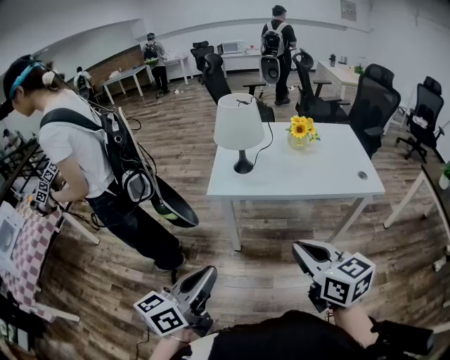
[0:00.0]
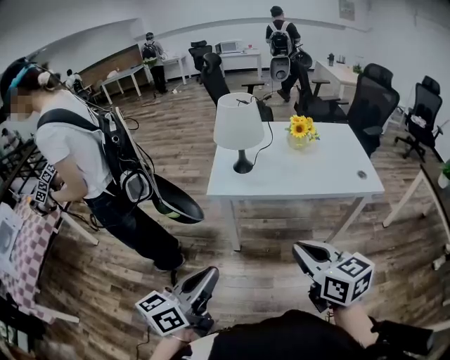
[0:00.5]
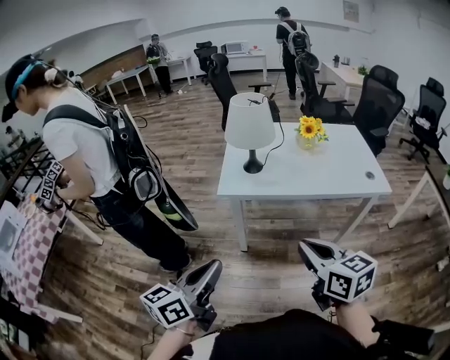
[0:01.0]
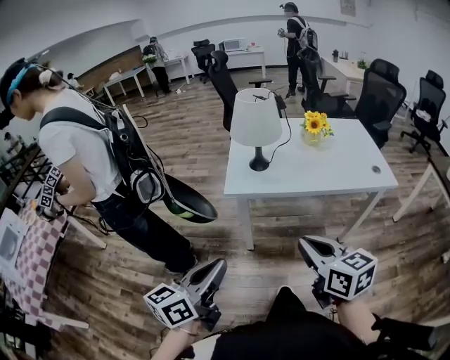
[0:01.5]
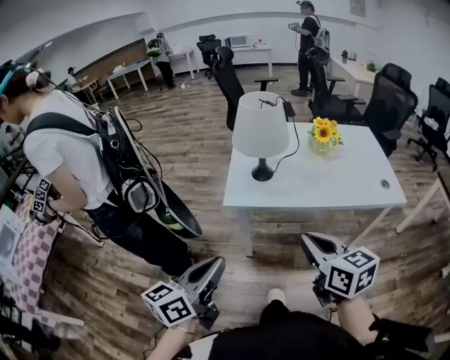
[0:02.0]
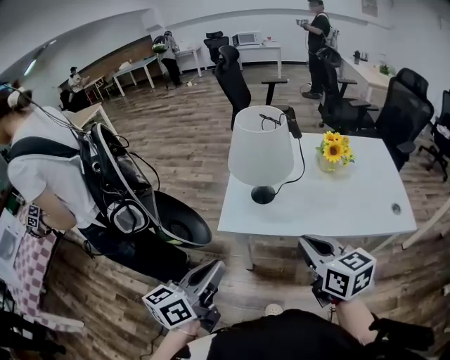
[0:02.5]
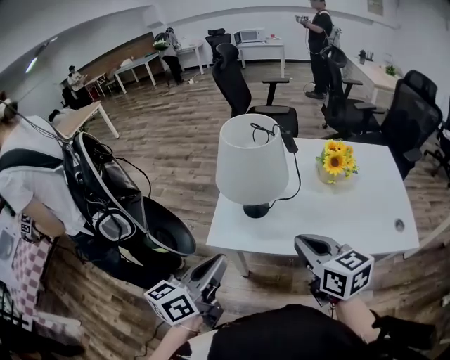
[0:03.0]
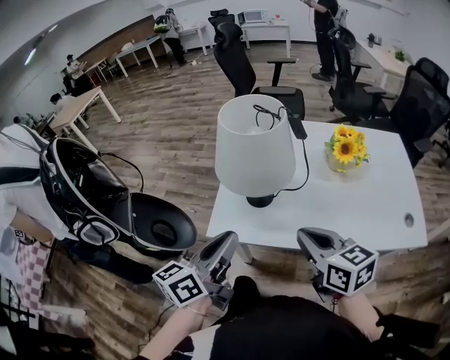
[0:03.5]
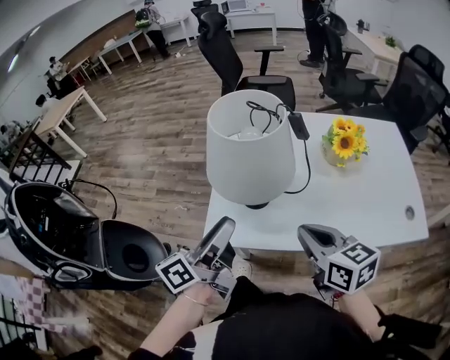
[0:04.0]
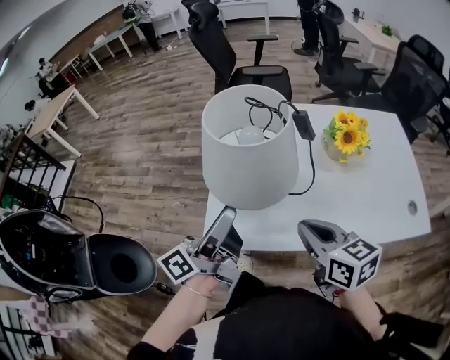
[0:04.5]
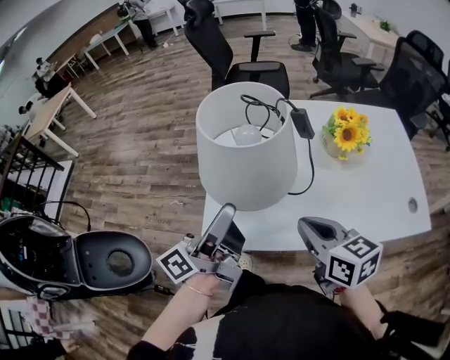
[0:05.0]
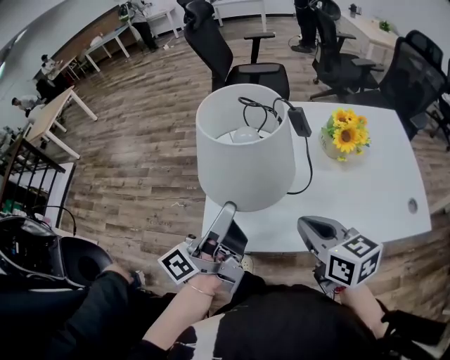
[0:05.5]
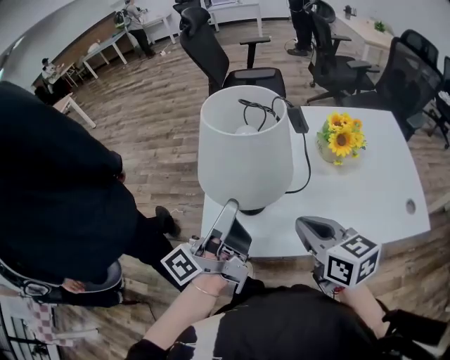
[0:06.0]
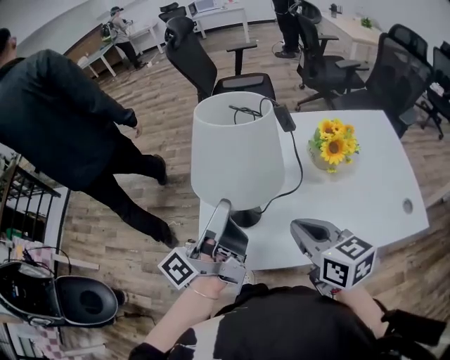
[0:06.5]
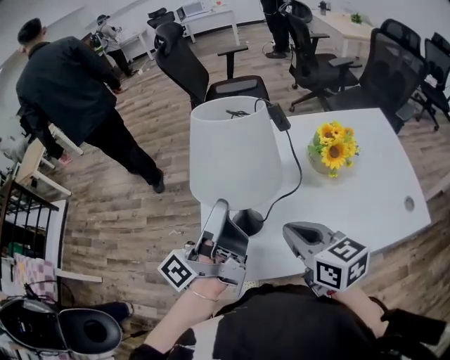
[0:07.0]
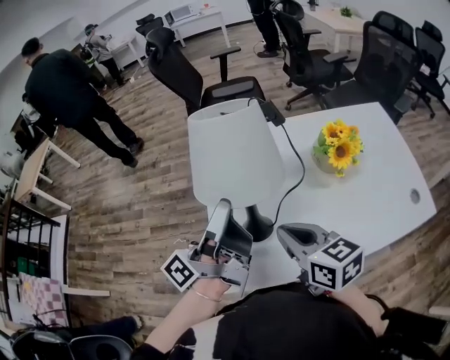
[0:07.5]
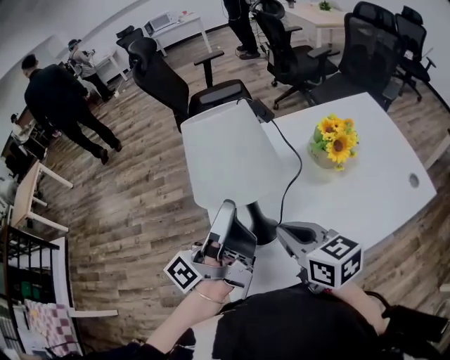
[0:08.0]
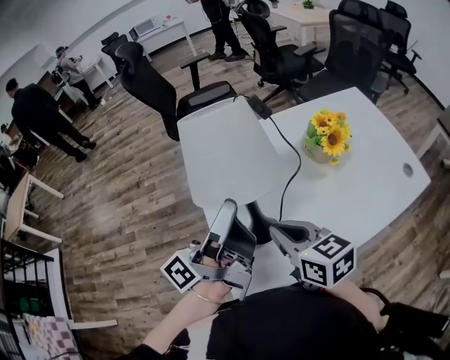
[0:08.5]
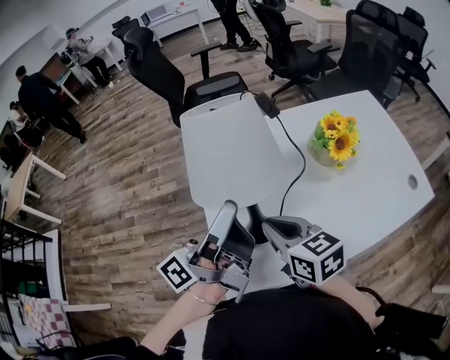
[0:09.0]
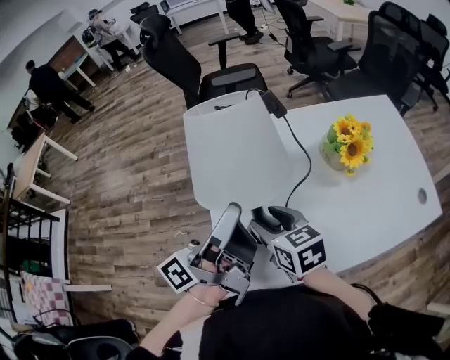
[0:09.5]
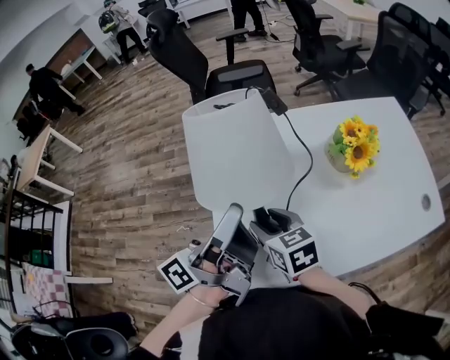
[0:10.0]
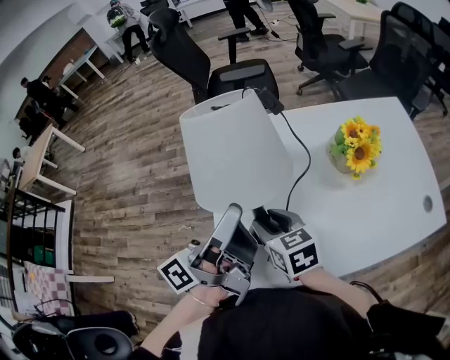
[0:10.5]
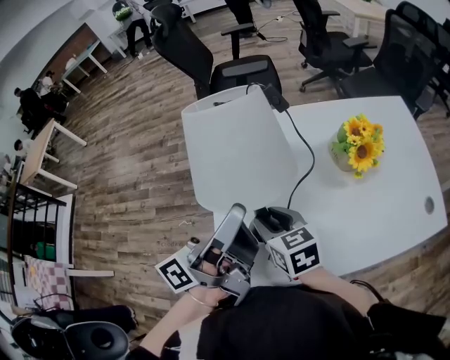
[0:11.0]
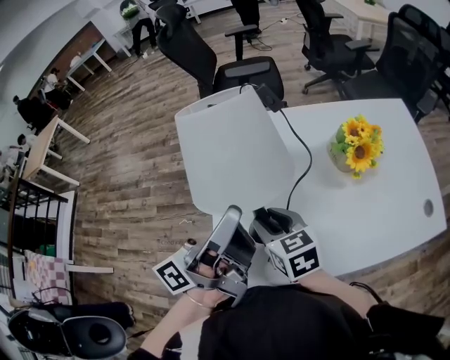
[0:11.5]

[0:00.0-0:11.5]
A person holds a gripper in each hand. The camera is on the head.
0:00.0 to 0:02.0: The grippers both shift forward by some 10 cm.
0:02.0 to 0:04.0: The grippers both shift forward by some 30 cm. The left gripper changes its angle by approximately 30 degrees, and opens up.
0:04.0 to 0:06.0: The left gripper travels forward by roughly 5 cm, and closes its fingers.
0:06.0 to 0:07.5: The left gripper moves forward, approximately 10 cm; the right gripper heads forward and to the left, covering approximately 10 cm.
0:07.5 to 0:09.5: The right gripper heads forward, to the left and downward, covering approximately 10 cm, and opens.
0:09.5 to 0:11.5: The grippers move only a little.

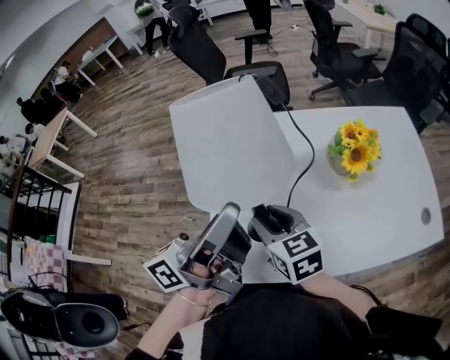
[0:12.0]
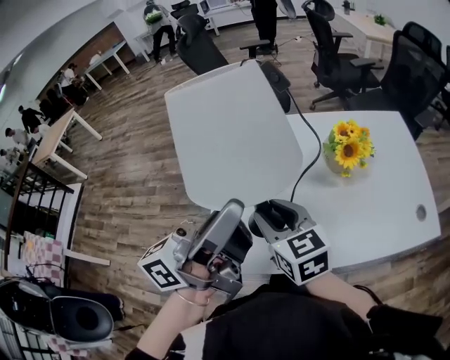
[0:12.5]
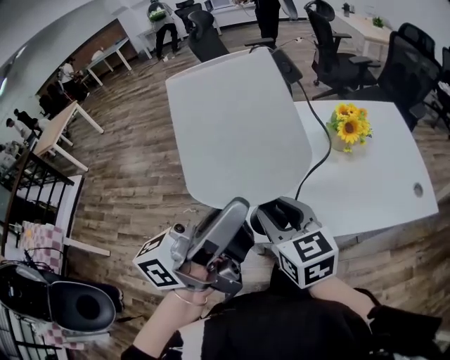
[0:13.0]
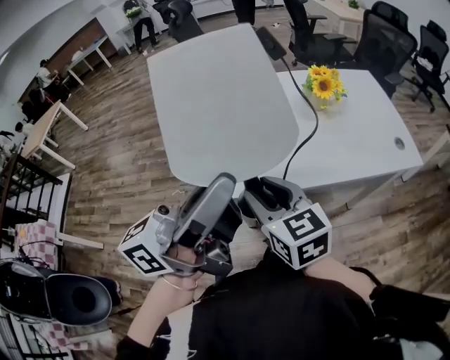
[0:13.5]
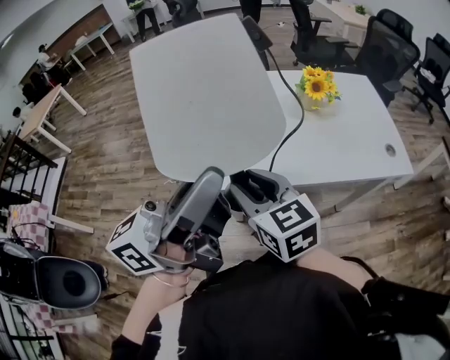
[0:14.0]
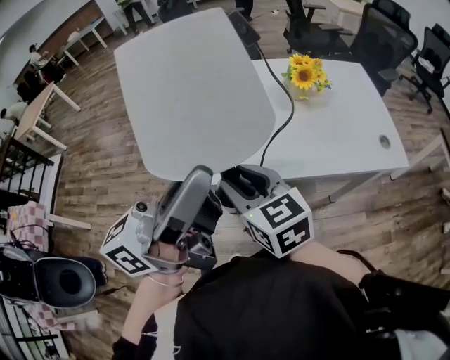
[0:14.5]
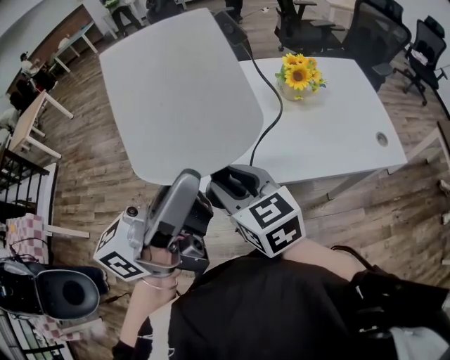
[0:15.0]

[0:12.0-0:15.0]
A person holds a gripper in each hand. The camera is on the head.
0:12.0 to 0:13.5: Both grippers travel together backward, about 25 cm.
0:13.5 to 0:15.0: The left gripper shifts about 5 cm to the right.

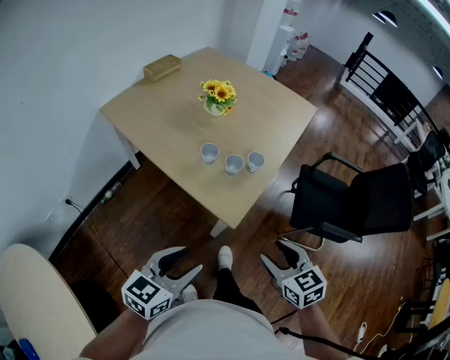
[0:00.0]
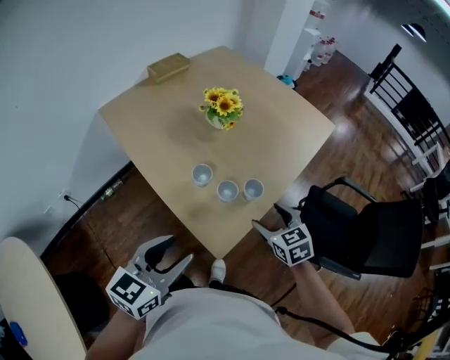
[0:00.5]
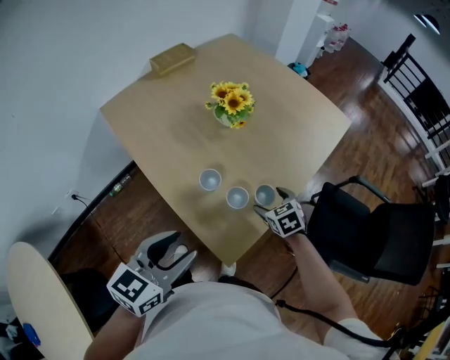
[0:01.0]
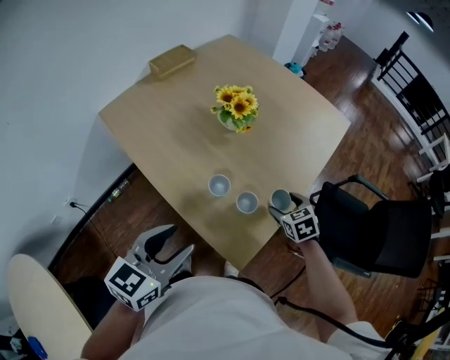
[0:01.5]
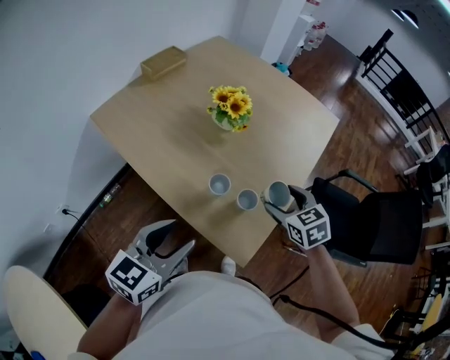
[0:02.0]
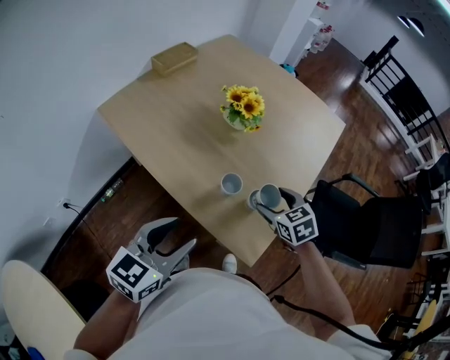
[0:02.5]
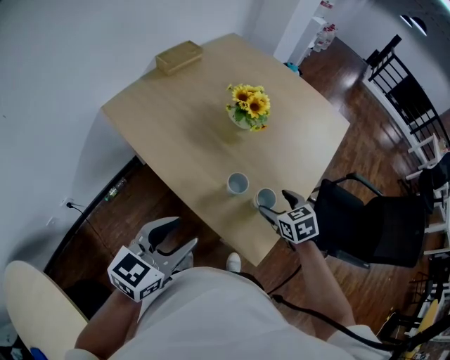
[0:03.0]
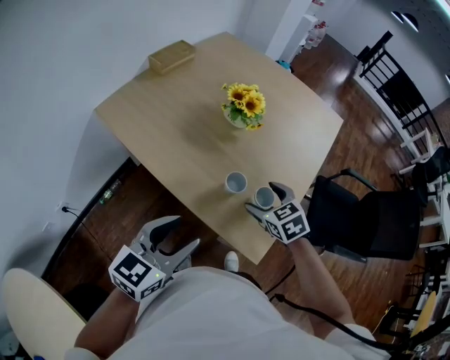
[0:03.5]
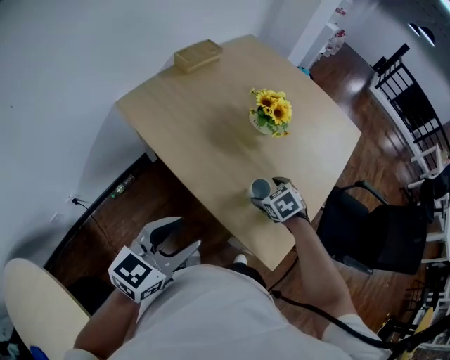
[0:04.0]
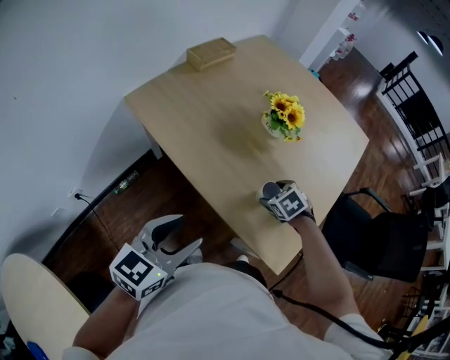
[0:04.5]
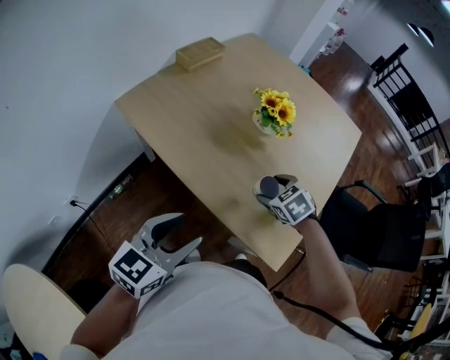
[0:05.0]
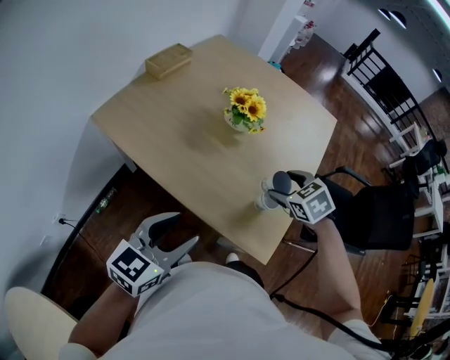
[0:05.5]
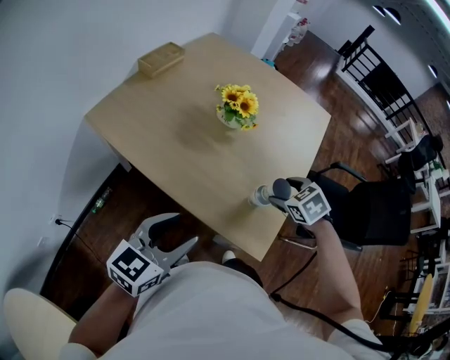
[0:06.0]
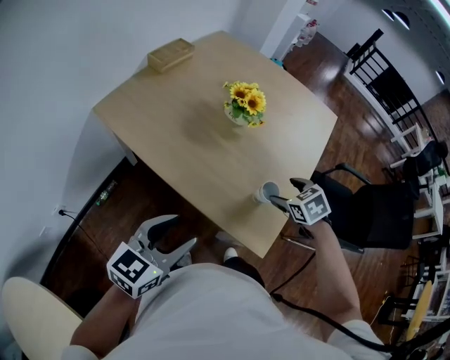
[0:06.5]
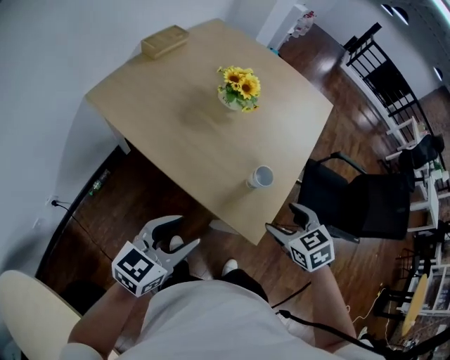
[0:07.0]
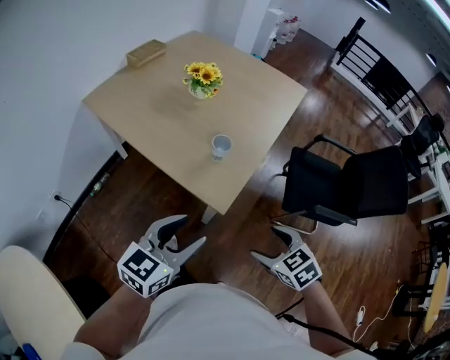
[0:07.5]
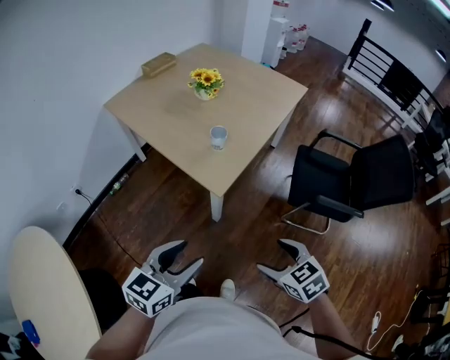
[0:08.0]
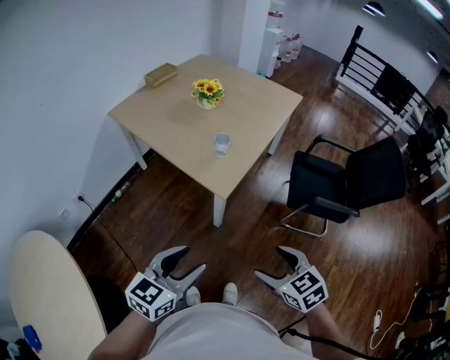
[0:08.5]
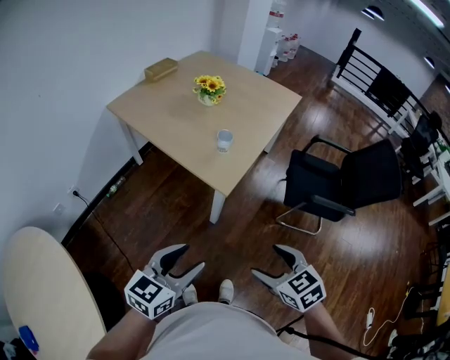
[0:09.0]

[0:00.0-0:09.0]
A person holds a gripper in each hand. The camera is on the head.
0:00.0 to 0:02.0: Both grippers travel together forward, approximately 30 cm.
0:02.0 to 0:04.5: The right gripper heads to the left and downward, covering approximately 20 cm, and changes its angle by about 30 degrees. The left gripper shifts roughly 15 cm to the left.
0:04.5 to 0:07.0: The left gripper heads to the right, covering approximately 10 cm. The right gripper goes some 25 cm backward, upward and to the right, and changes its angle by about 20 degrees.
0:07.0 to 0:09.0: The right gripper travels backward by roughly 40 cm, while the left gripper moves backward and to the right, roughly 35 cm.

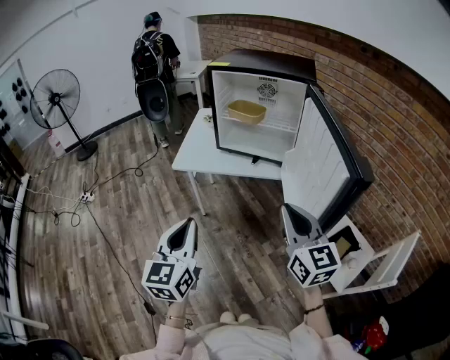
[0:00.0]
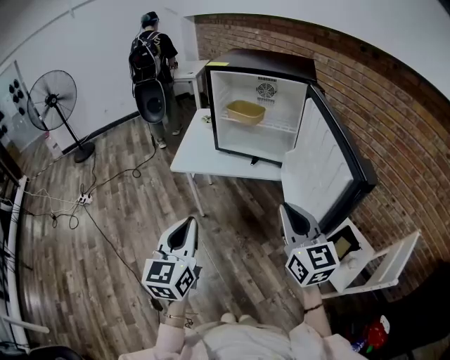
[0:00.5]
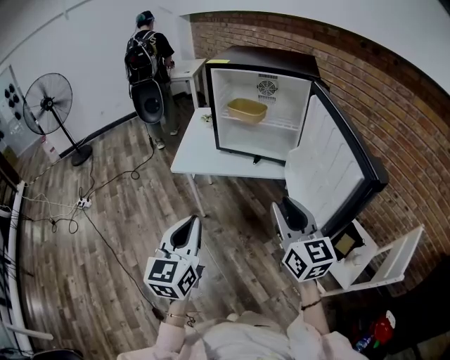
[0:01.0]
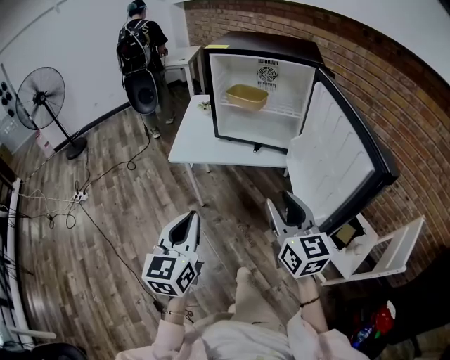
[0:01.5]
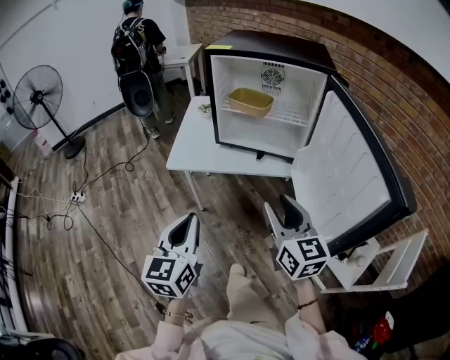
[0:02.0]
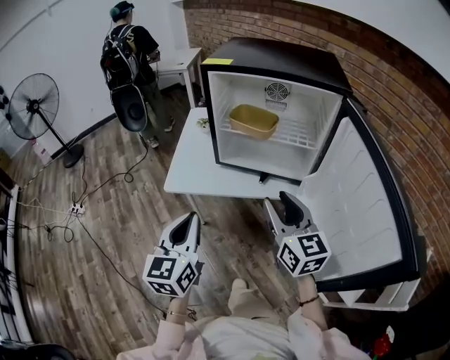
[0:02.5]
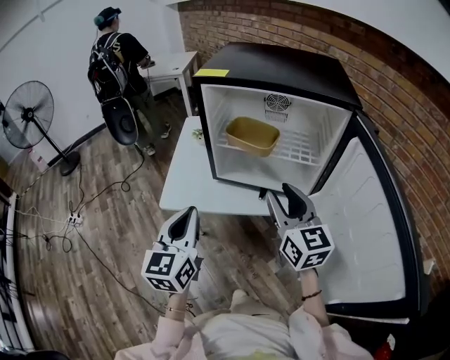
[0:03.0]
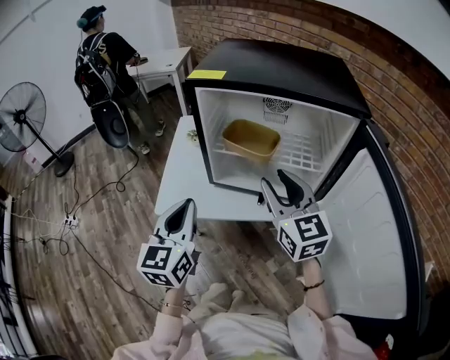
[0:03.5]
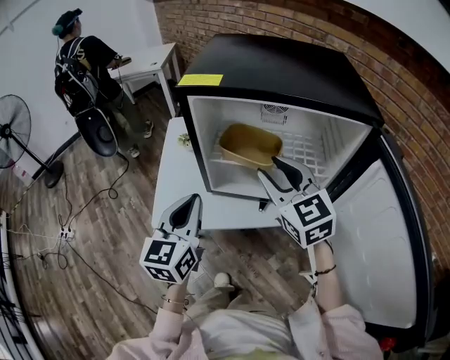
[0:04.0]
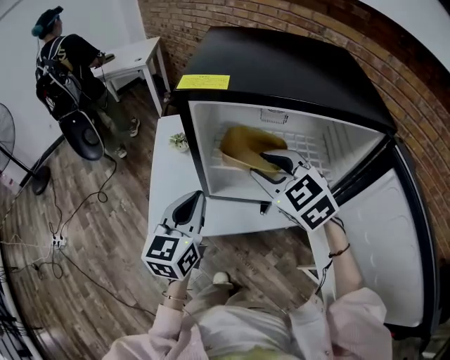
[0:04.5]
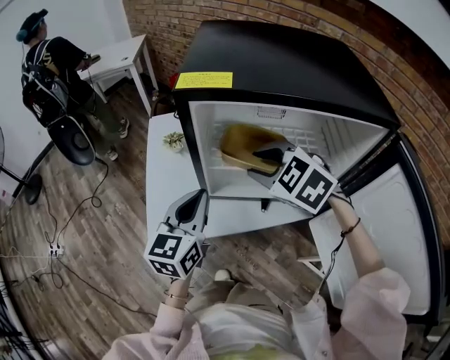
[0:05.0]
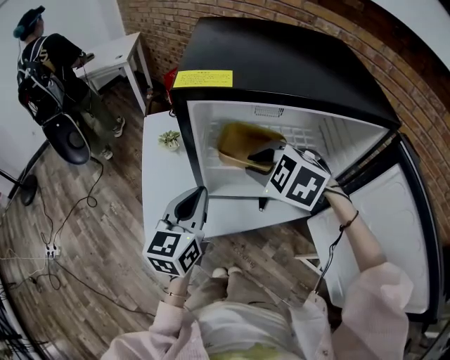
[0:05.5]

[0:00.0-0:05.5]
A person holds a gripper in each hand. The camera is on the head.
0:00.0 to 0:02.0: The right gripper moves forward, to the left and downward, approximately 15 cm, and opens its fingers; the left gripper heads forward, covering about 10 cm.
0:02.0 to 0:03.5: The two grippers go approximately 25 cm forward.
0:03.5 to 0:05.5: The left gripper travels forward by some 15 cm, and rotates about 20 degrees, while the right gripper goes approximately 15 cm forward, downward and to the left, and angles its fingers downward, by roughly 50 degrees.
